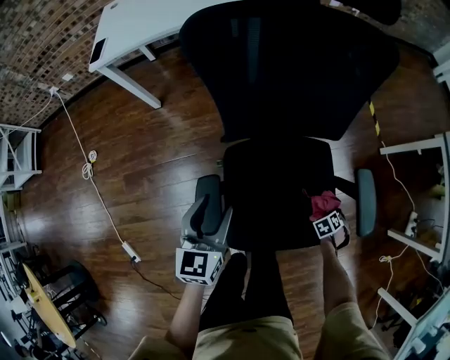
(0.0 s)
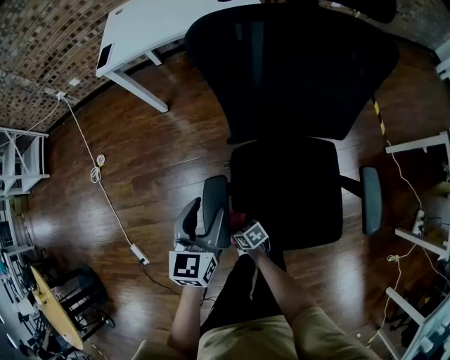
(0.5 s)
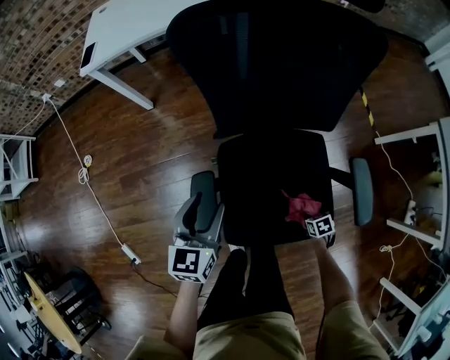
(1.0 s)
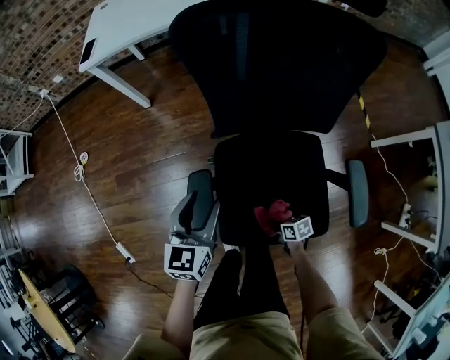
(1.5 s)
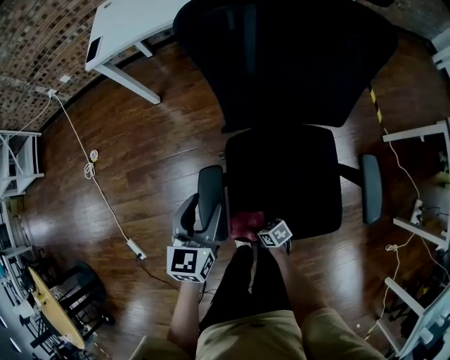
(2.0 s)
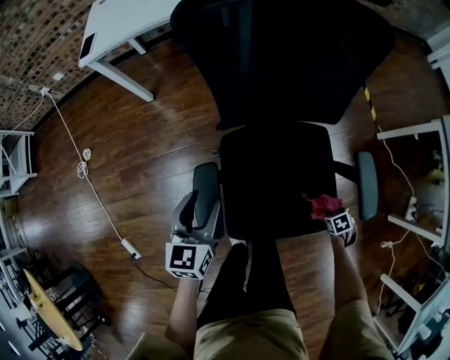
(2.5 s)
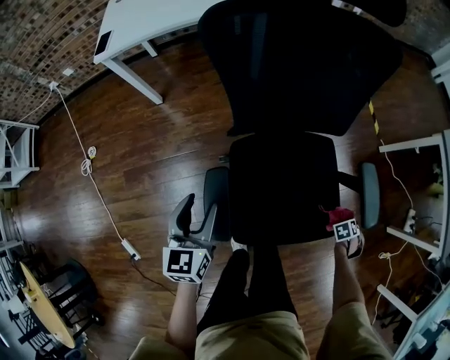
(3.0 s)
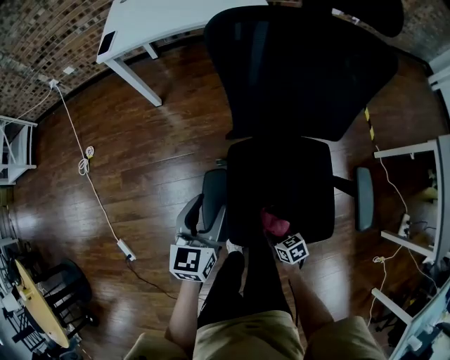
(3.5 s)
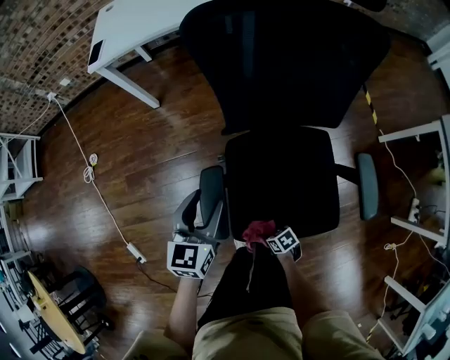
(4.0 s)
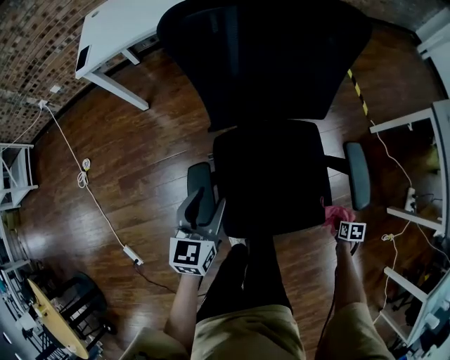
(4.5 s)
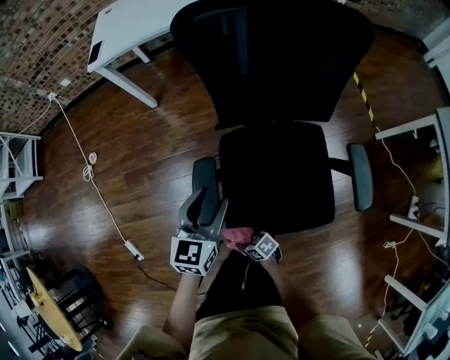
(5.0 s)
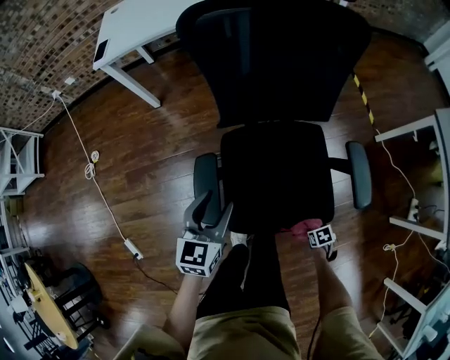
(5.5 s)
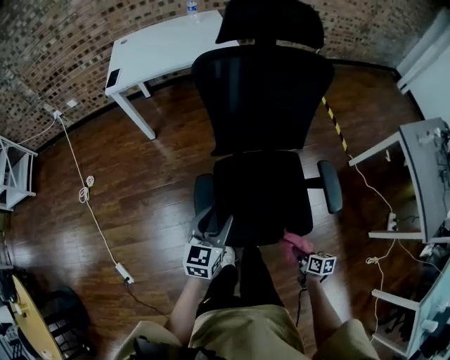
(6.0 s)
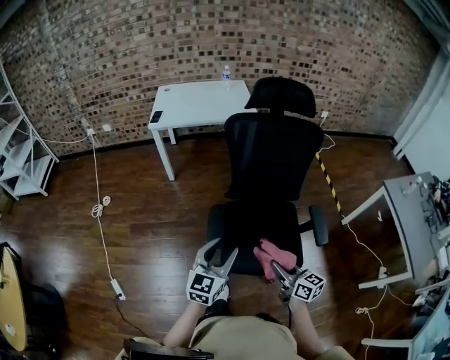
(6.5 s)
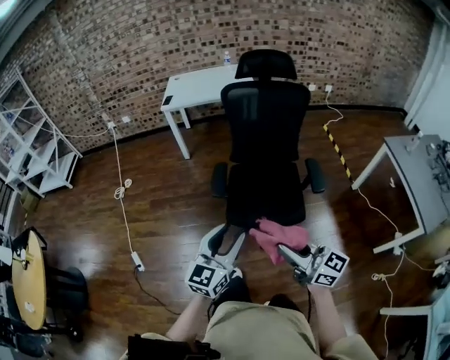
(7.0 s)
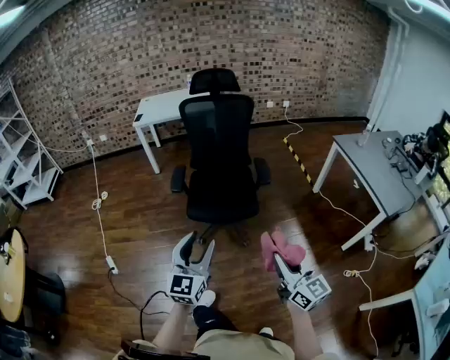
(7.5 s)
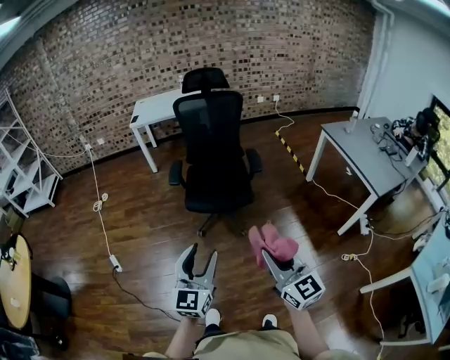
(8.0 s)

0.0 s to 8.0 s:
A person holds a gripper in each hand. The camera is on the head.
0.0 to 2.0 s: The right gripper ends up roughly 40 cm from where it was, and angles its fingers upward, by approximately 30 degrees.
4.0 to 6.0 s: The left gripper moves some 10 cm. The right gripper moves up and down over some 15 cm, changing direction 2 times, and turns by approximately 40 degrees.
6.0 to 8.0 s: The pair of grippers is taken backward, roughly 60 cm. The right gripper shifts approximately 50 cm upward, and tips its fingers upward by approximately 50 degrees. Meanwhile the left gripper rotates some 30 degrees.

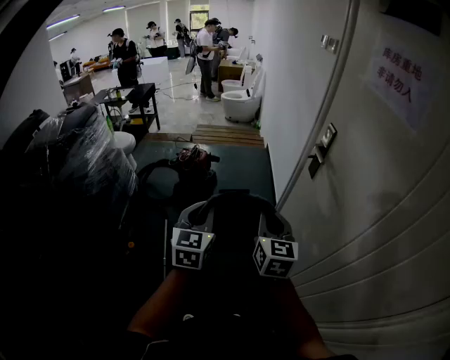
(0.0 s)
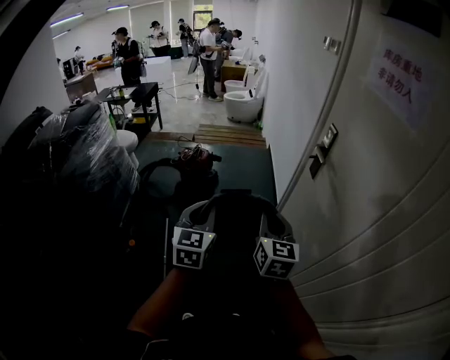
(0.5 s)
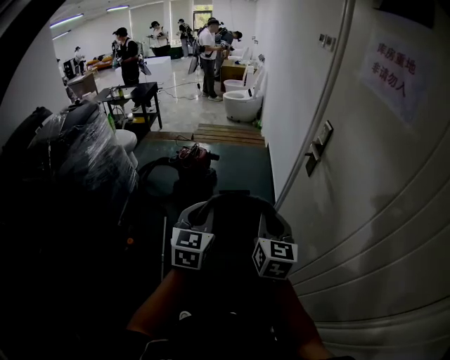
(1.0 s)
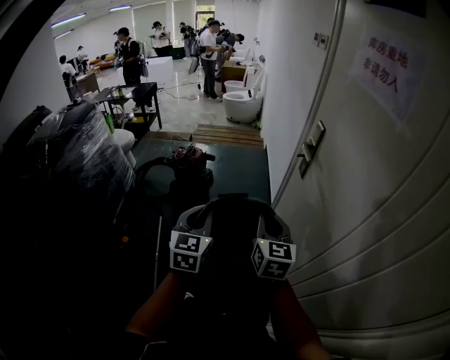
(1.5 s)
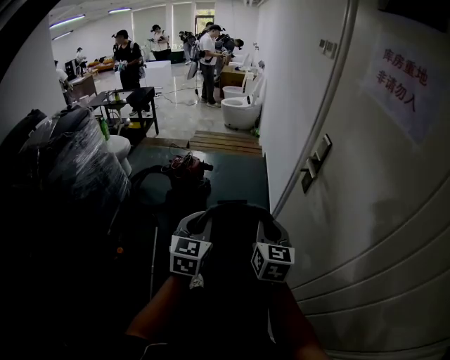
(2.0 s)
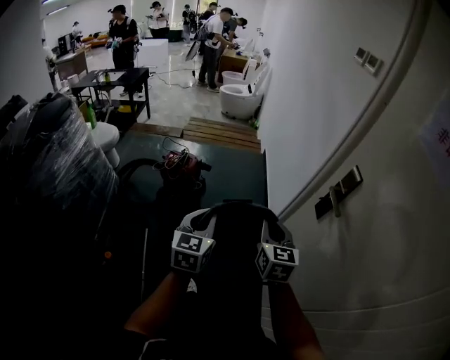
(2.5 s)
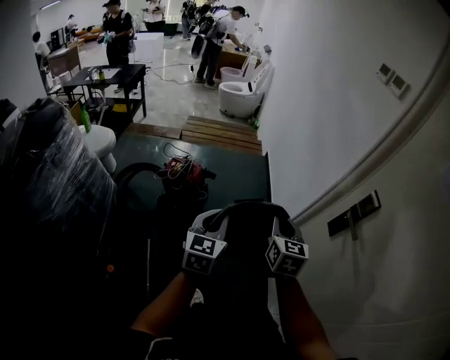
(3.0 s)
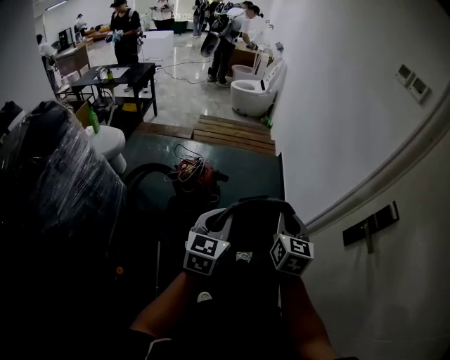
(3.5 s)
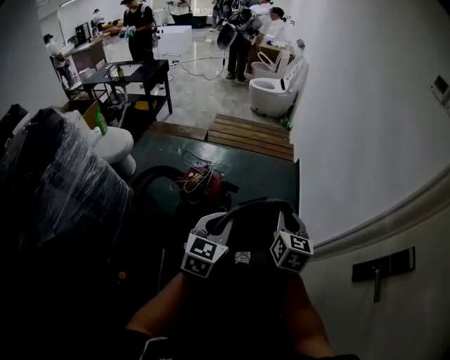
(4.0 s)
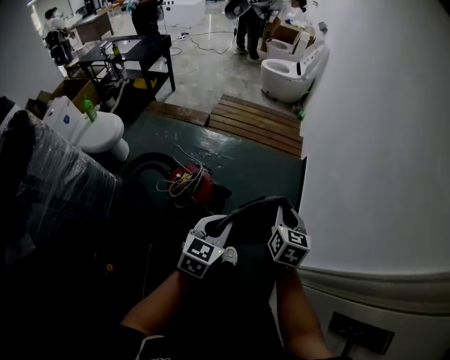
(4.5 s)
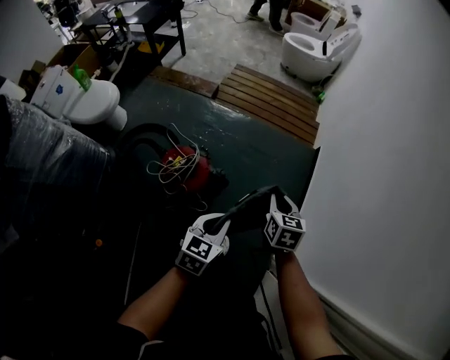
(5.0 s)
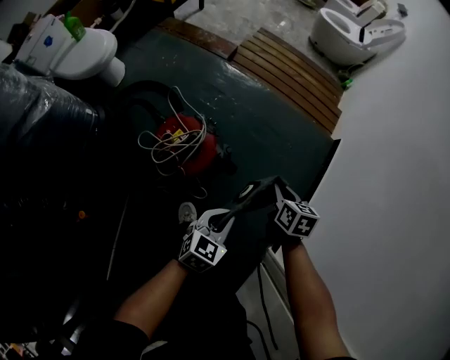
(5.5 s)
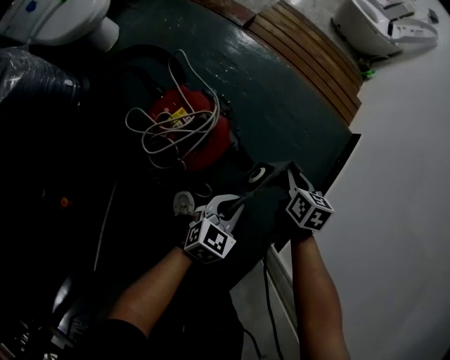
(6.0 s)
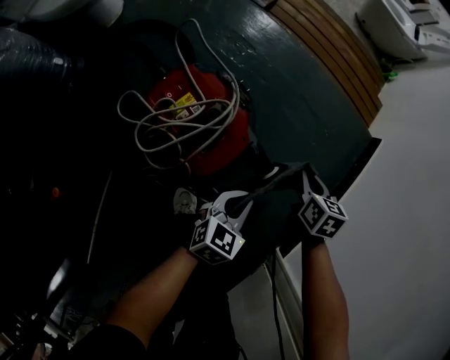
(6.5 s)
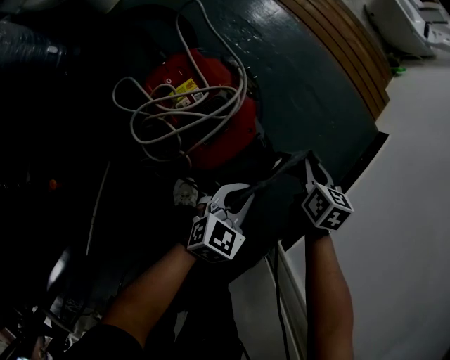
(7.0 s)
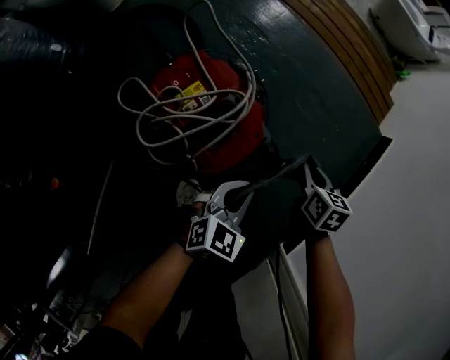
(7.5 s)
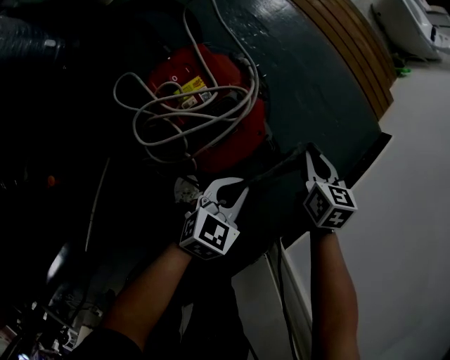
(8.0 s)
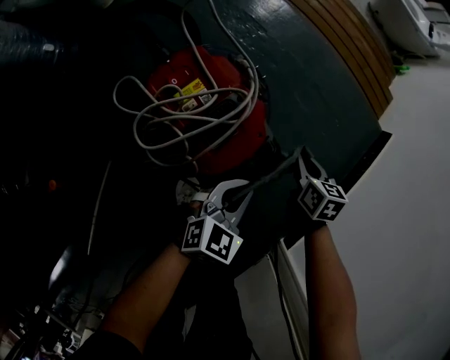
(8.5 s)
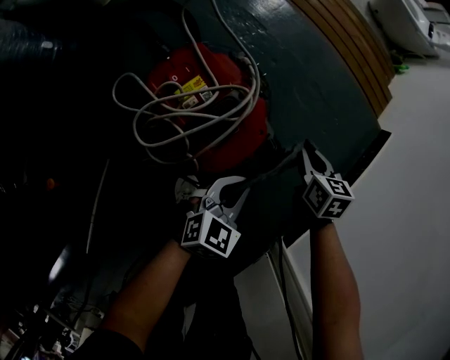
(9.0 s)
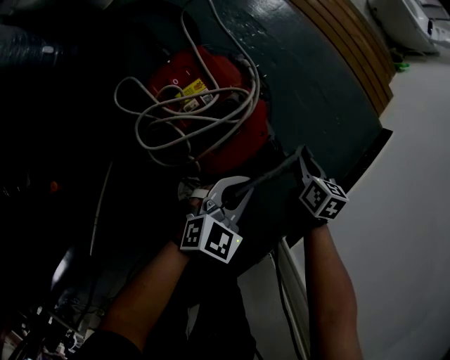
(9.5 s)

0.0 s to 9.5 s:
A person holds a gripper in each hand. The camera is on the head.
0.0 to 2.0 s: The left gripper travels to the right and forward by approximately 10 cm; the right gripper travels forward and to the right by about 10 cm.
2.0 to 4.0 s: Both grippers are carried forward and to the left, some 50 cm.
4.0 to 5.5 s: The left gripper travels downward and forward by about 40 cm, and swivels roughly 20 degrees. Meanwhile the right gripper goes approximately 50 cm forward and downward, and rotates approximately 40 degrees.
5.5 to 7.5 s: The two grippers go about 25 cm downward.
7.5 to 9.5 s: The grippers stay close to where they were, moving slightly.

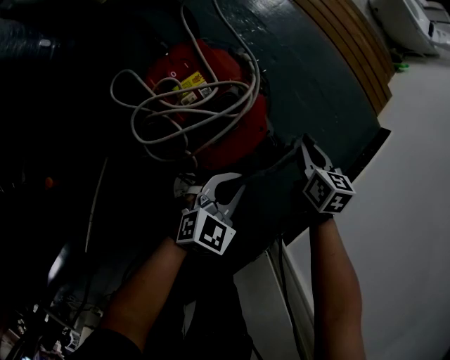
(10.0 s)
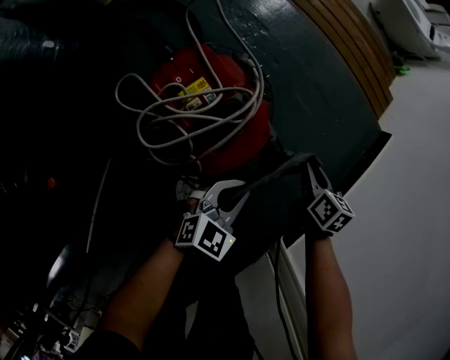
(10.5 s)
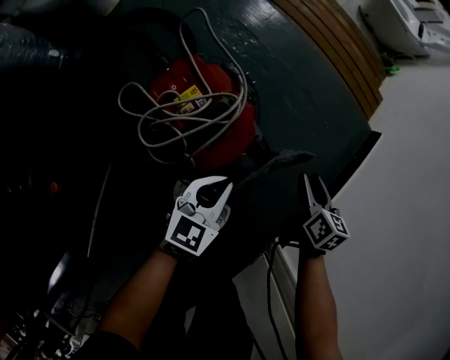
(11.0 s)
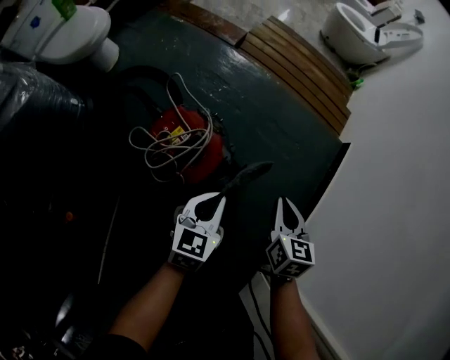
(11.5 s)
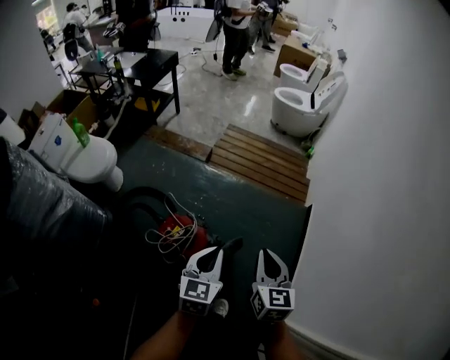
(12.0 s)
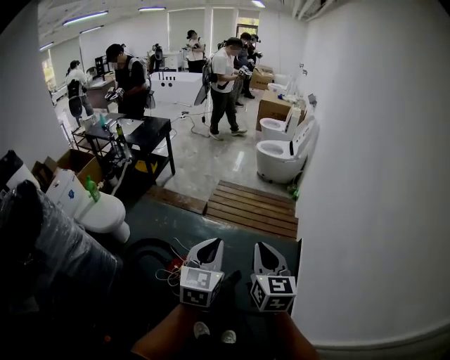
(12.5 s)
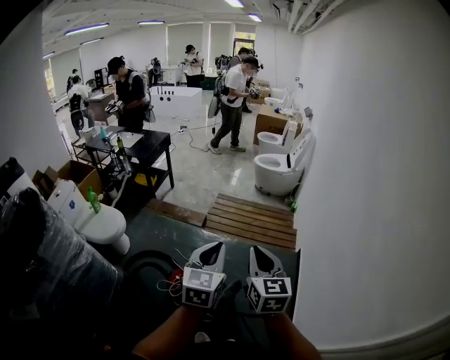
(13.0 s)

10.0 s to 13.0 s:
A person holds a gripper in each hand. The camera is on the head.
10.0 to 11.5 s: Both grippers travel together upward, some 20 cm. The right gripper turns by approximately 20 degrees, and opens, then closes again.
11.5 to 13.0 s: Both grippers move upward, about 50 cm. The left gripper changes its angle by approximately 30 degrees; the right gripper swivels about 30 degrees.

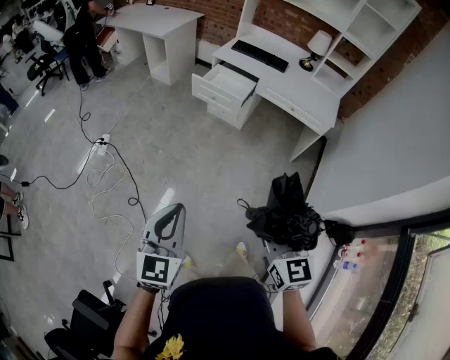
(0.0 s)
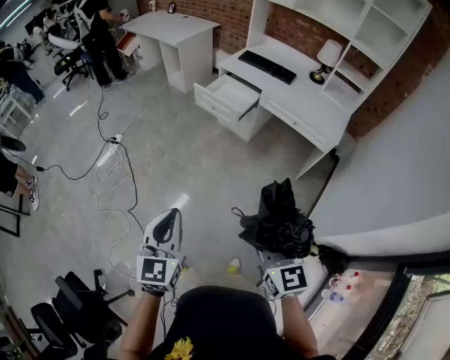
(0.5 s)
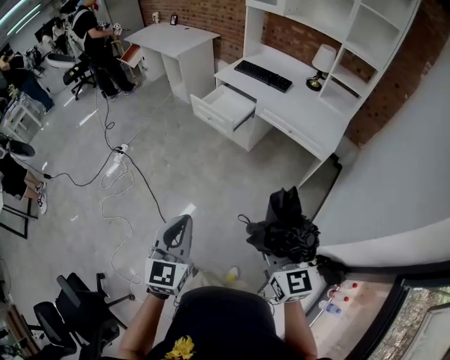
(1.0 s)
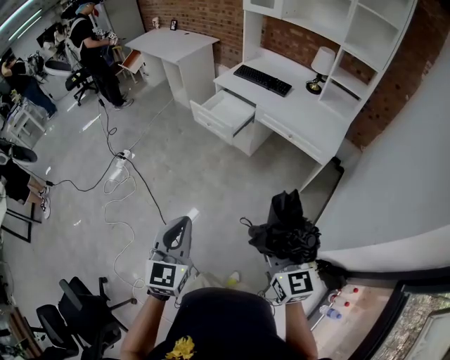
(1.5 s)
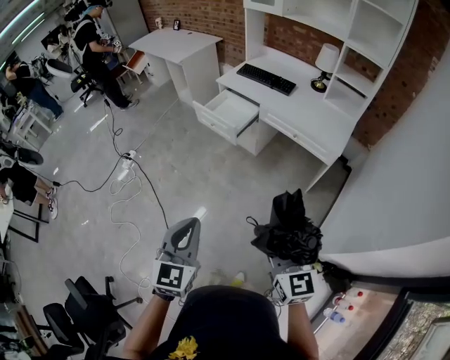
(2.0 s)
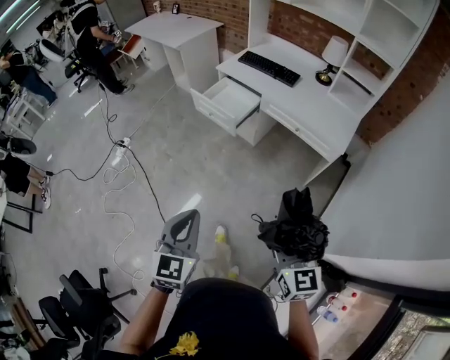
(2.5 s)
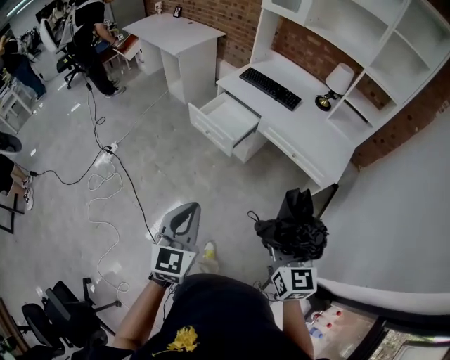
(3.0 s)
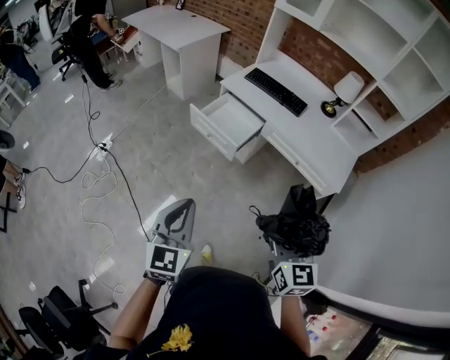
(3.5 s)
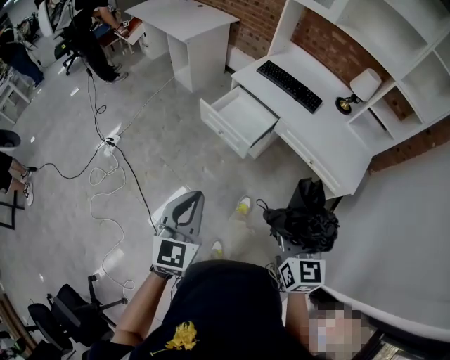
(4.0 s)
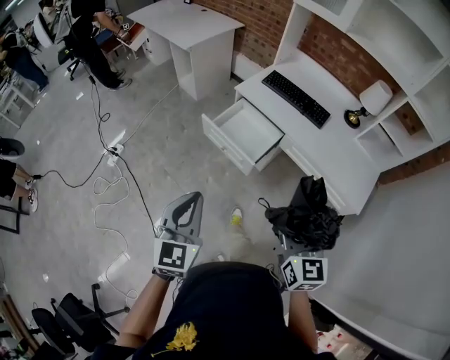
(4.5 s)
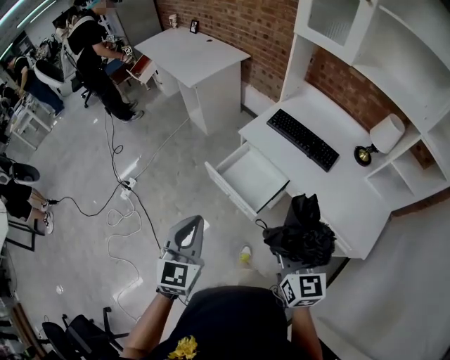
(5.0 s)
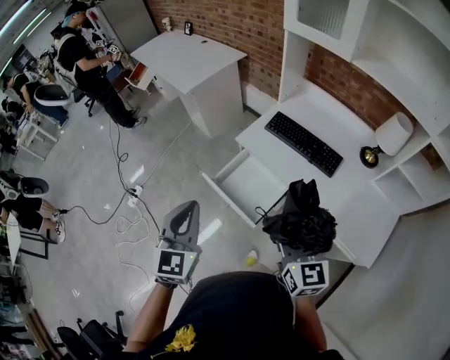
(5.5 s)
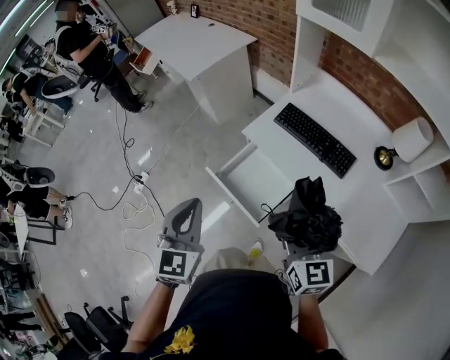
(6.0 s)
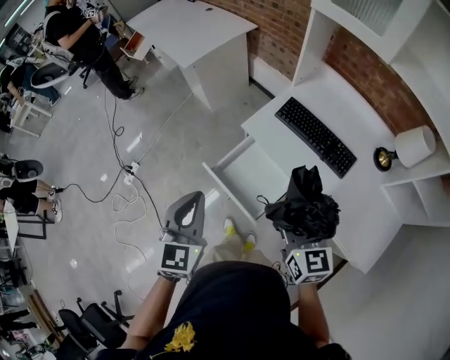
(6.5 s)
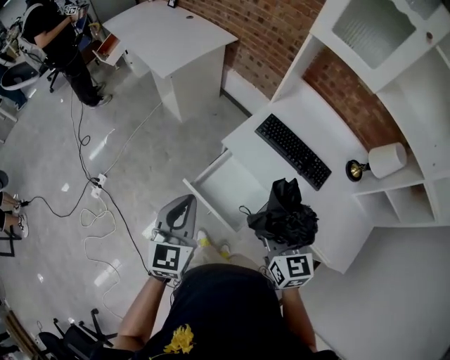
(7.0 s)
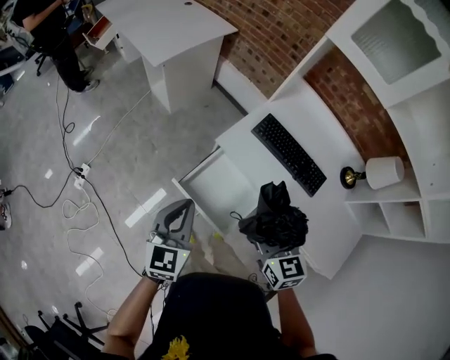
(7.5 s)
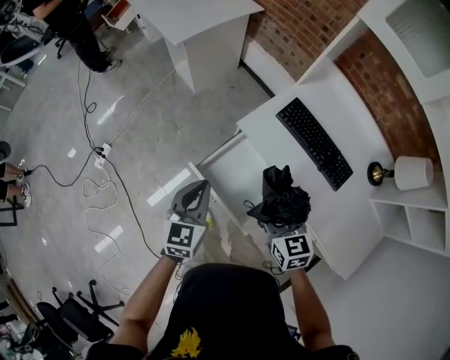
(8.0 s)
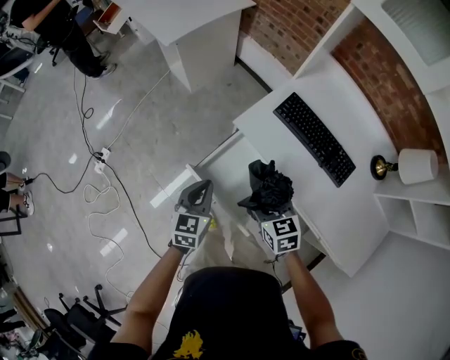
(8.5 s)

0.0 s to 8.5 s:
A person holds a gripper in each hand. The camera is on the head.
0.0 to 2.0 s: Both grippers travel together to the right, about 30 cm.
2.0 to 4.0 s: The right gripper moves forward, about 30 cm. Meanwhile the left gripper moves forward and to the left, about 35 cm.
4.0 to 6.5 s: Both grippers are carried forward, roughly 50 cm.
6.5 to 8.5 s: Both grippers move downward and forward, some 25 cm. The right gripper changes its angle by about 30 degrees.
